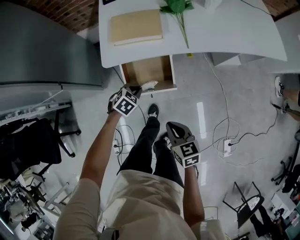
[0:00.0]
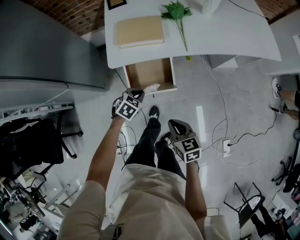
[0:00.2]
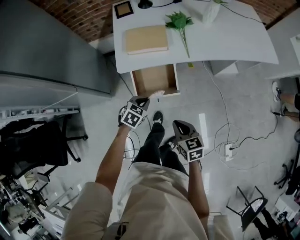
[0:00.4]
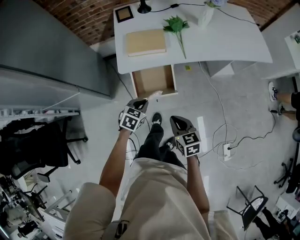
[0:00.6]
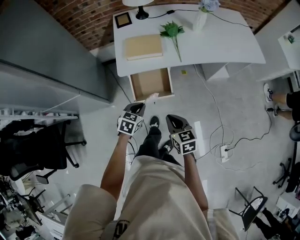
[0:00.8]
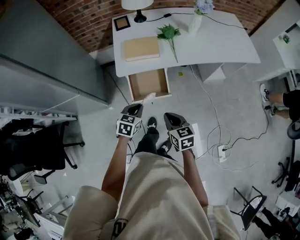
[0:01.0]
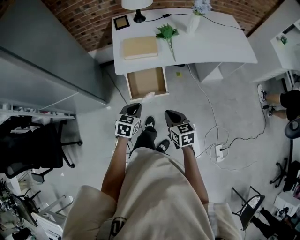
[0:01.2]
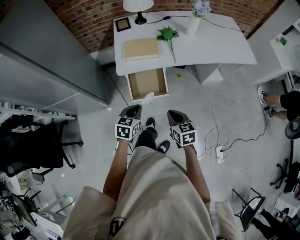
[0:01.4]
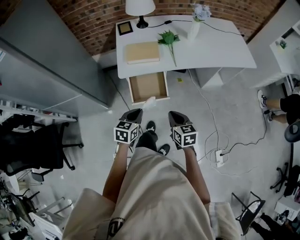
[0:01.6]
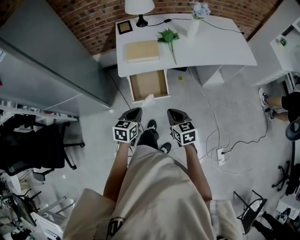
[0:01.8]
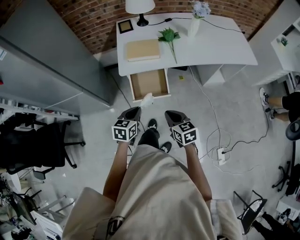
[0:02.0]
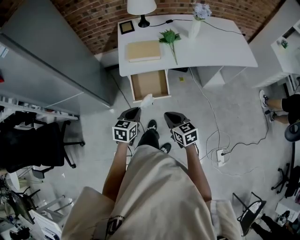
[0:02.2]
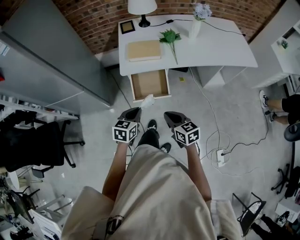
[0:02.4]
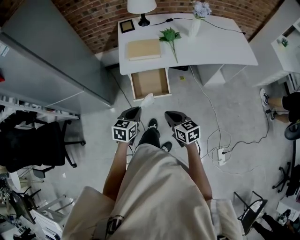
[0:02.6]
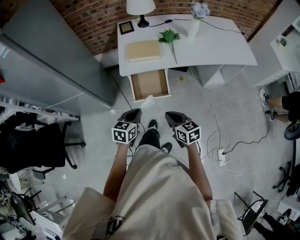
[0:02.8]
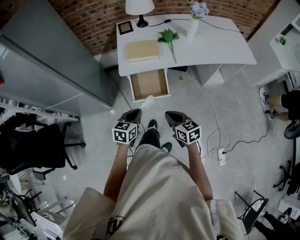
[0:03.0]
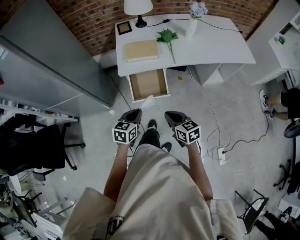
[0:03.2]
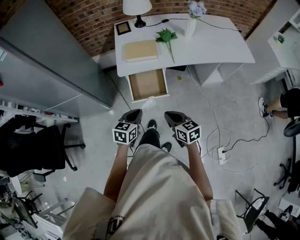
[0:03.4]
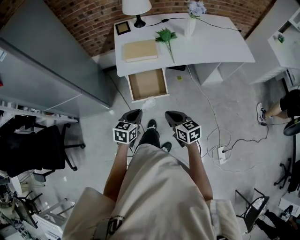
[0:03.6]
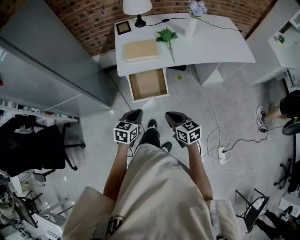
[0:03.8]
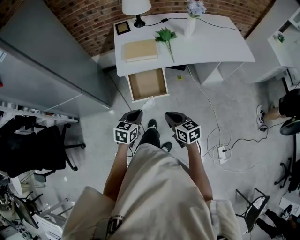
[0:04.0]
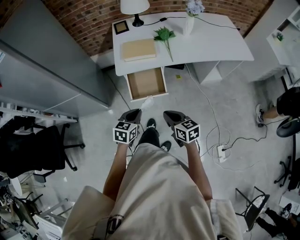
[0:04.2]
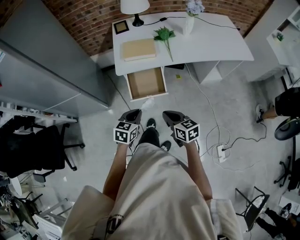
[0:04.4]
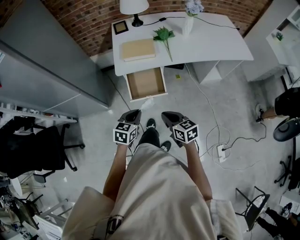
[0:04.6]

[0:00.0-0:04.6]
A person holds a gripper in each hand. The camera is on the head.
0:00.0 to 0:01.6: The right gripper is displaced upward by roughly 15 cm. The left gripper goes roughly 30 cm upward and backward, and swivels approximately 40 degrees.
0:01.6 to 0:04.6: The grippers make only small movements.

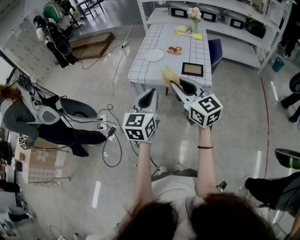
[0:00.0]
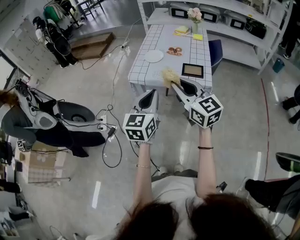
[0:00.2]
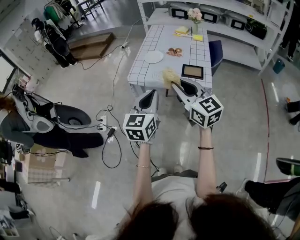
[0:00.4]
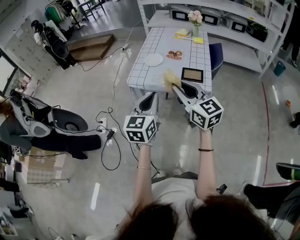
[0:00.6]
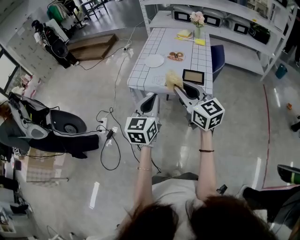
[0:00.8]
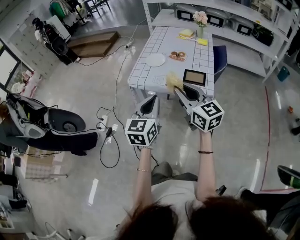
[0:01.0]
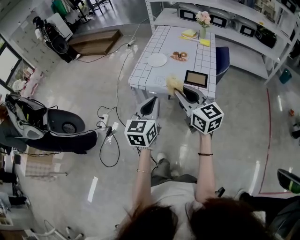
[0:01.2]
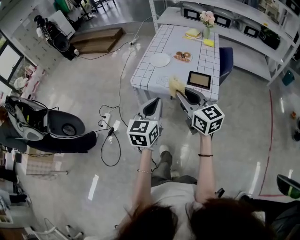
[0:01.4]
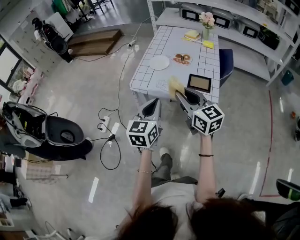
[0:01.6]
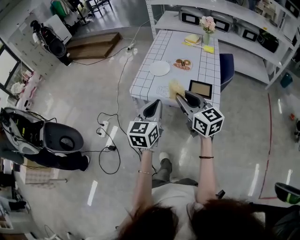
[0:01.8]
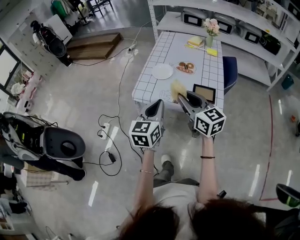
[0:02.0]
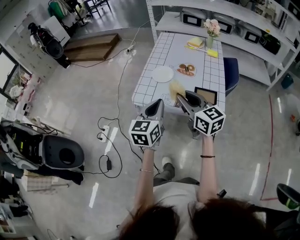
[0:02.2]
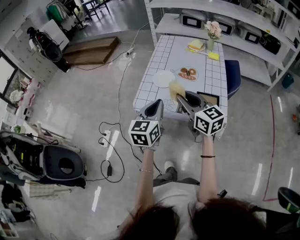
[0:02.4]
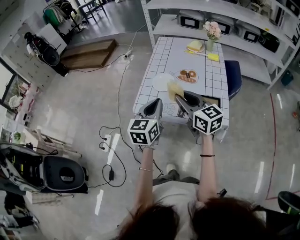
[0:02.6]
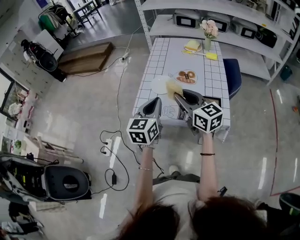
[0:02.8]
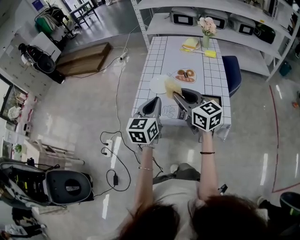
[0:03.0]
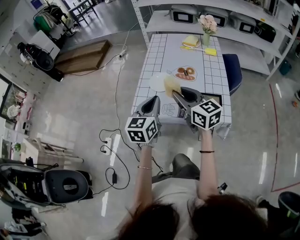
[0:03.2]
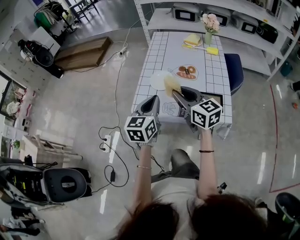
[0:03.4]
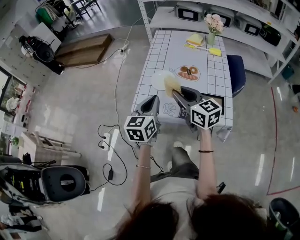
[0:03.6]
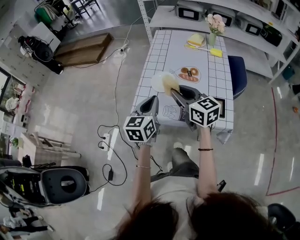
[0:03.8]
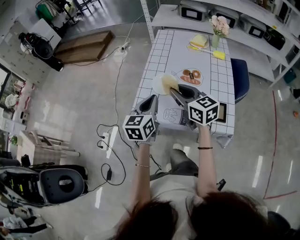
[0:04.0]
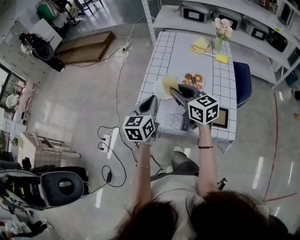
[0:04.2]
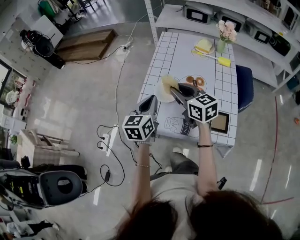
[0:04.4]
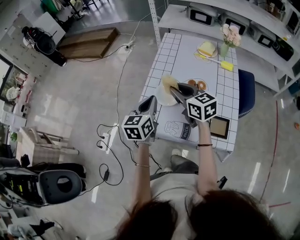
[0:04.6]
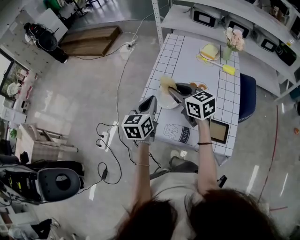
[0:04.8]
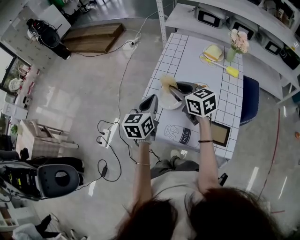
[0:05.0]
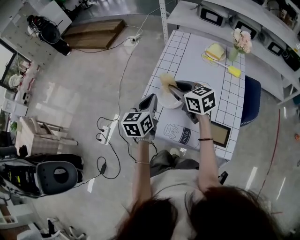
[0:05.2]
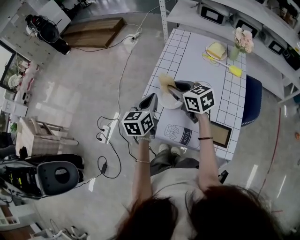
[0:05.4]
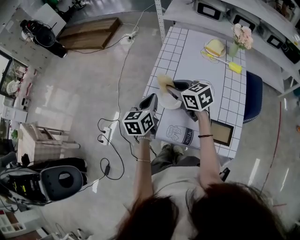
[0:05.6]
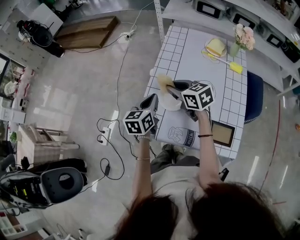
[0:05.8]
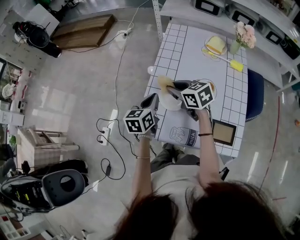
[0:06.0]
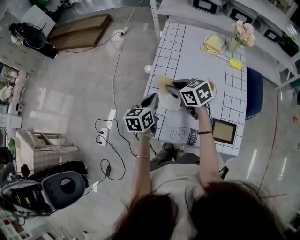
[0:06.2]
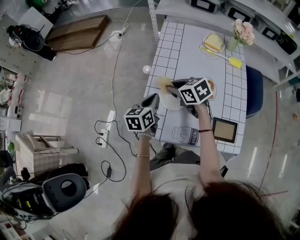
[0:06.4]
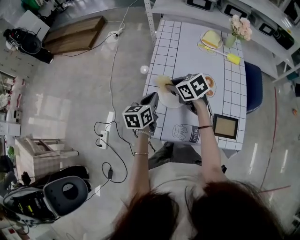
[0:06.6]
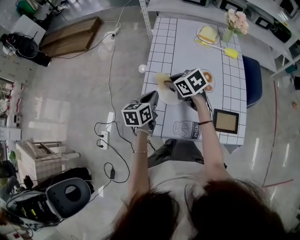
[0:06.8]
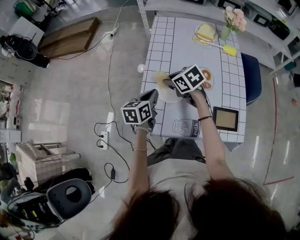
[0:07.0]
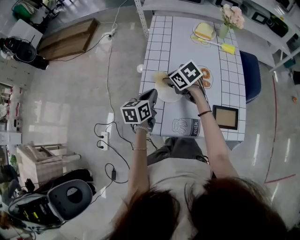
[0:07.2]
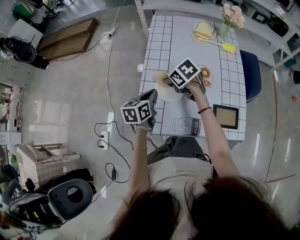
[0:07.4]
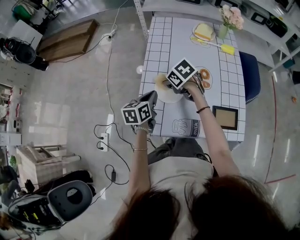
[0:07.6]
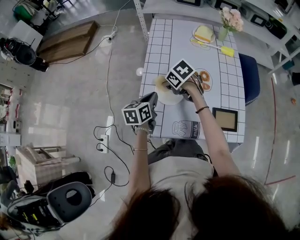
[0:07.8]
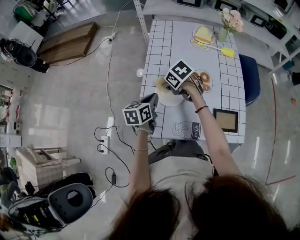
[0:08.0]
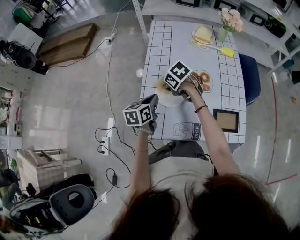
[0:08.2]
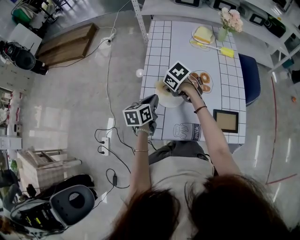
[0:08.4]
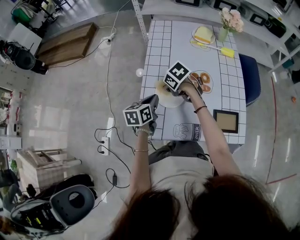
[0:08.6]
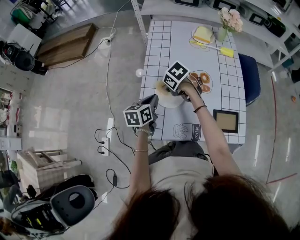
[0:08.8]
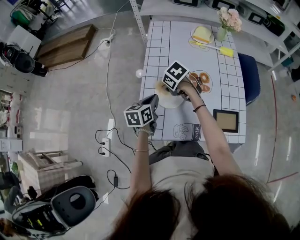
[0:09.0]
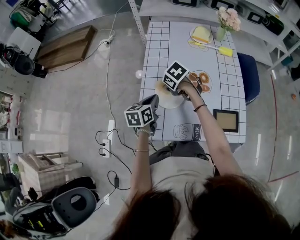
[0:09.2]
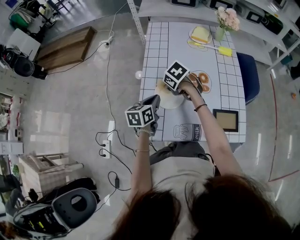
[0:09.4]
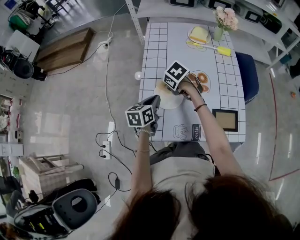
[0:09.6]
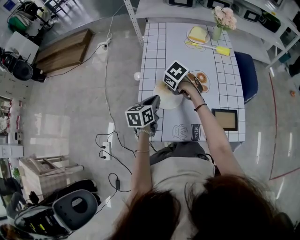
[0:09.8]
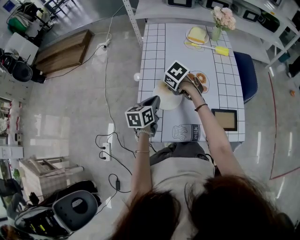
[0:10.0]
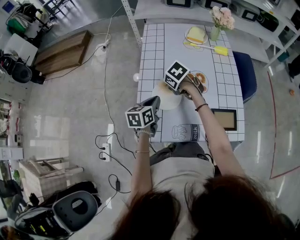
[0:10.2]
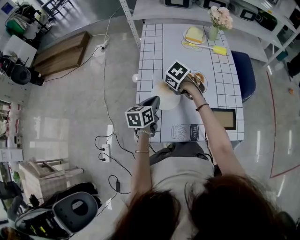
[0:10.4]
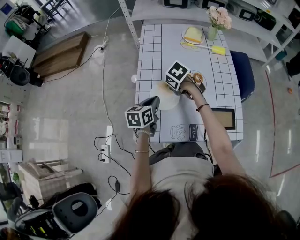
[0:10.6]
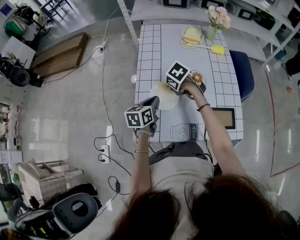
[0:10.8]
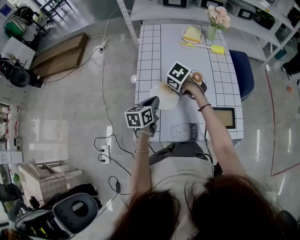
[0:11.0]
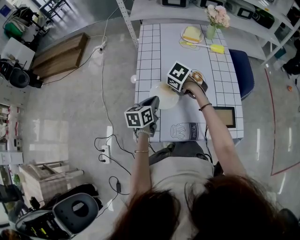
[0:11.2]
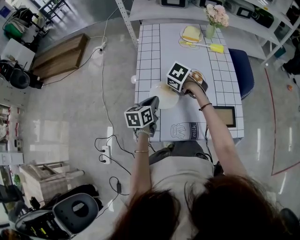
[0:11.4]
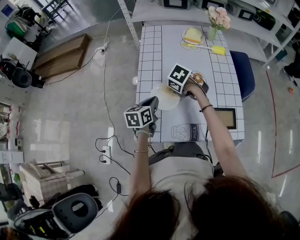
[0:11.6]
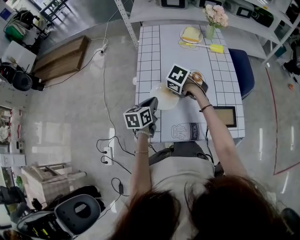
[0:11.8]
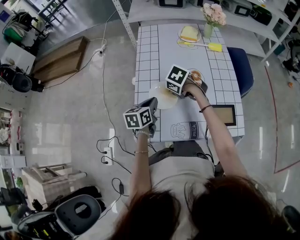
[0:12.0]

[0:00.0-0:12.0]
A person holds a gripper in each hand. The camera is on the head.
0:00.0 to 0:01.6: The left gripper is displaced forward by approximately 10 cm. The right gripper travels forward and downward by roughly 10 cm.
0:01.6 to 0:03.0: Both grippers move forward, about 20 cm.
0:03.0 to 0:04.4: The grippers both shift forward by about 15 cm.
0:04.4 to 0:06.0: The two grippers go roughly 15 cm forward and downward. The right gripper turns by some 20 degrees.
0:06.0 to 0:07.6: The left gripper heads downward, covering roughly 5 cm. Meanwhile the right gripper goes roughly 10 cm downward, and rotates approximately 30 degrees.
0:07.6 to 0:10.4: The grippers move only a little.
0:10.4 to 0:12.0: The grippers move only a little.

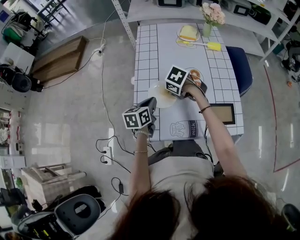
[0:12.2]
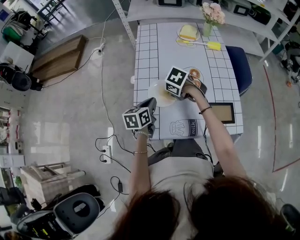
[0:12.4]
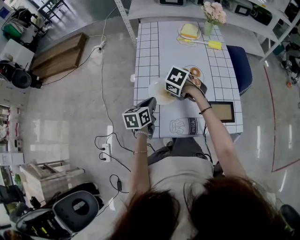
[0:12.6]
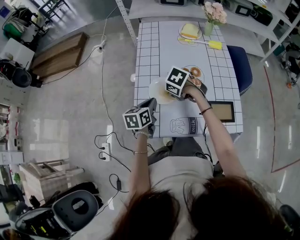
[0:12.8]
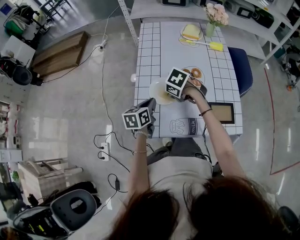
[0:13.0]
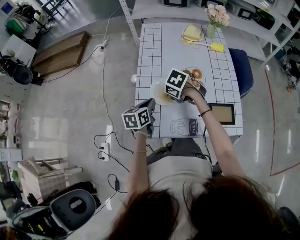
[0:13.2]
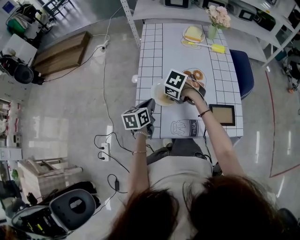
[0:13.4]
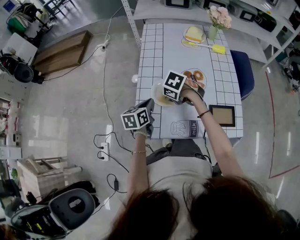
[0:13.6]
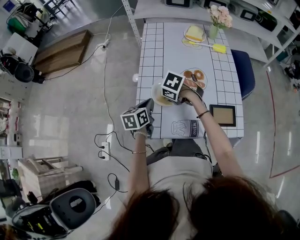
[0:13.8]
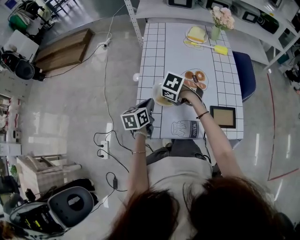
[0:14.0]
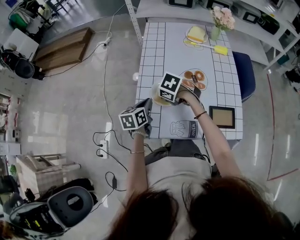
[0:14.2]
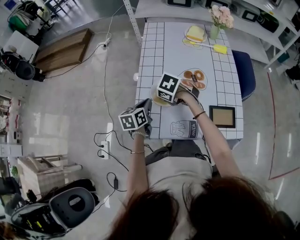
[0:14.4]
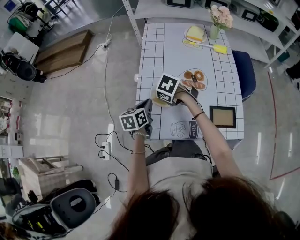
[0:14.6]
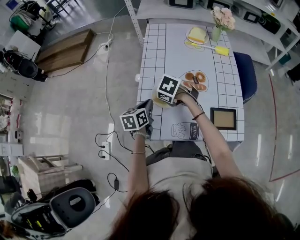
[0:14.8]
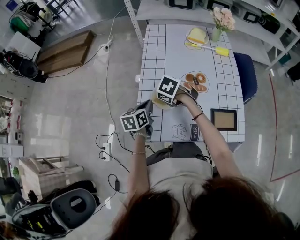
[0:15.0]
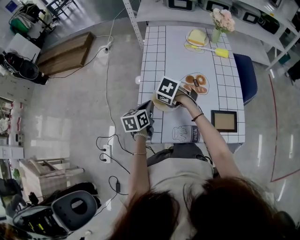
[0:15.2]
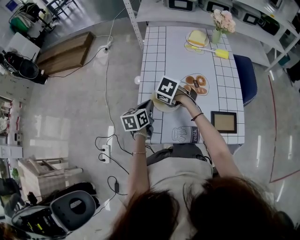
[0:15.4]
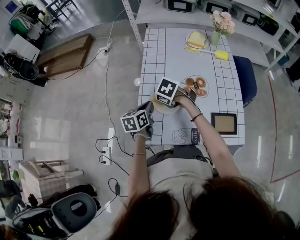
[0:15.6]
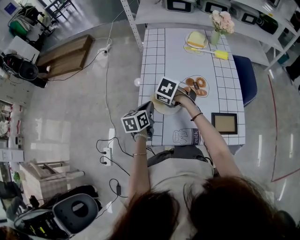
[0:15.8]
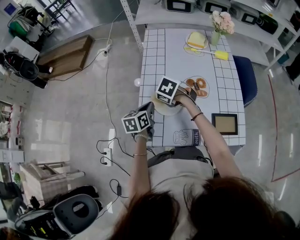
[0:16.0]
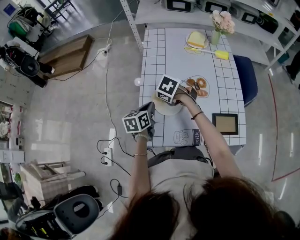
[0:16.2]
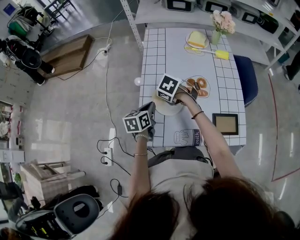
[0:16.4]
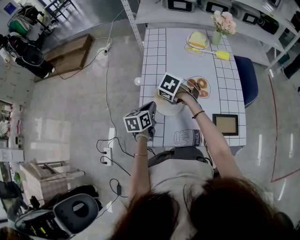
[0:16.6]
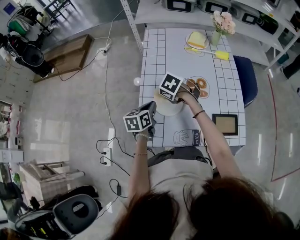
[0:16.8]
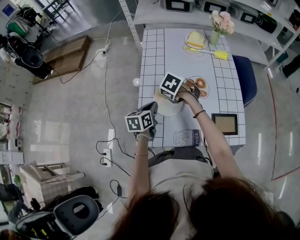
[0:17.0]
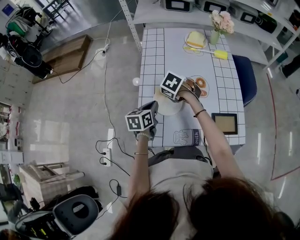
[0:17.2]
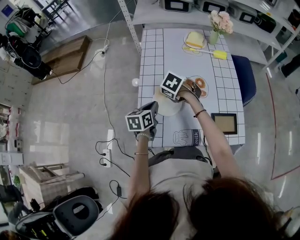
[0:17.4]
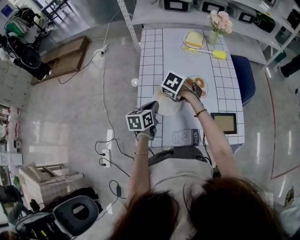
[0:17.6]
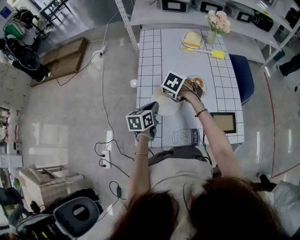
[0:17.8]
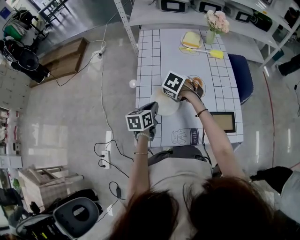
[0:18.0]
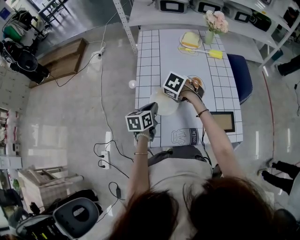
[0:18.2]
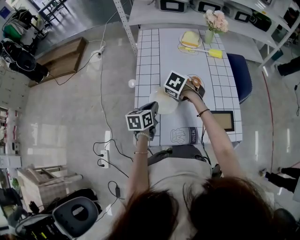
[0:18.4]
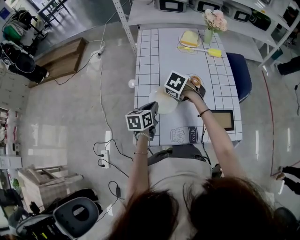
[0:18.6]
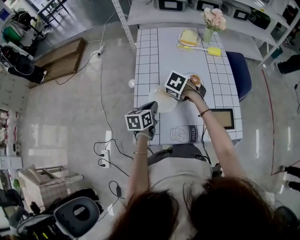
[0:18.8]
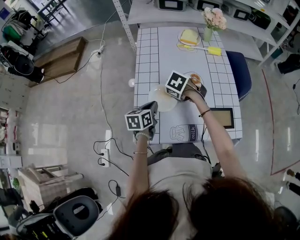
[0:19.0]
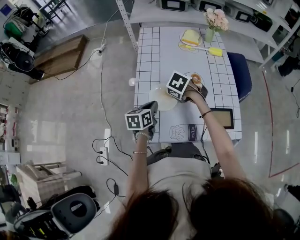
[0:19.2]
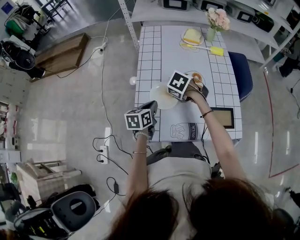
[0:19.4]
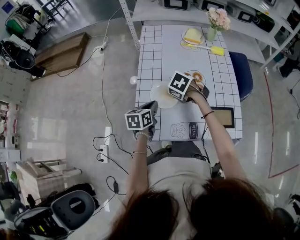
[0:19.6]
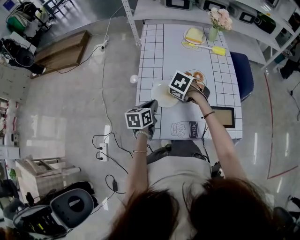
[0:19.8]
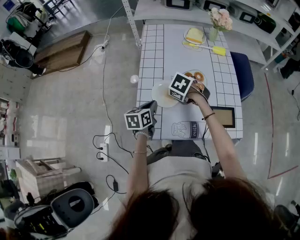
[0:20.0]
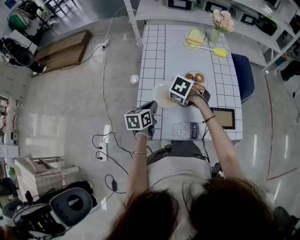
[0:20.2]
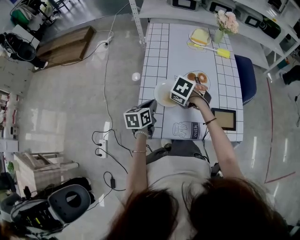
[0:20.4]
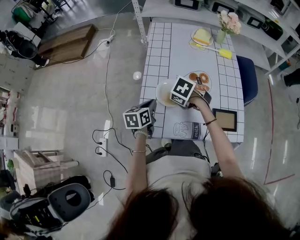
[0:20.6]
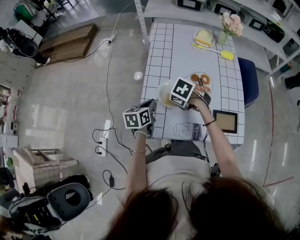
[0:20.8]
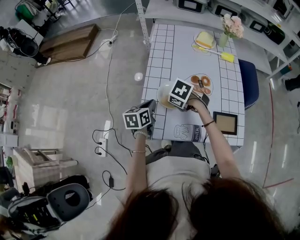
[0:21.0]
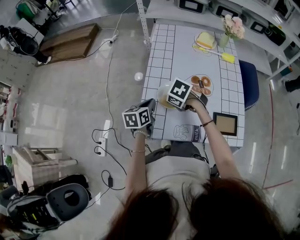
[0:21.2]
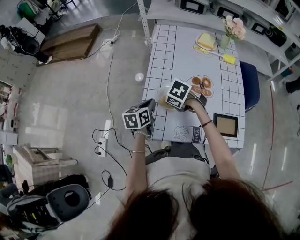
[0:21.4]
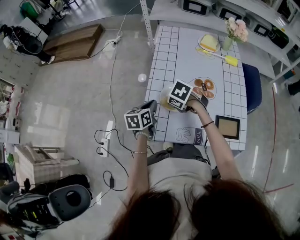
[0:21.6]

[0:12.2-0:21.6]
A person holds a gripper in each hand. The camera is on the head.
0:12.2 to 0:13.8: The right gripper moves to the left, some 5 cm.
0:13.8 to 0:15.4: The grippers move only a little.
0:15.4 to 0:17.0: The right gripper changes place by approximately 5 cm.
0:17.0 to 0:18.4: The grippers make only small movements.
0:18.4 to 0:20.0: The right gripper moves some 5 cm.
0:20.0 to 0:21.6: The right gripper travels to the left by roughly 5 cm.
